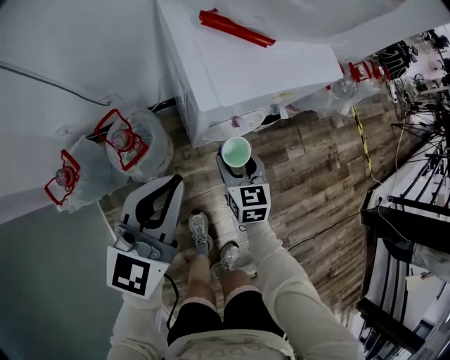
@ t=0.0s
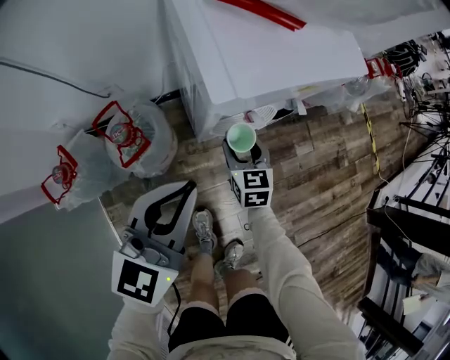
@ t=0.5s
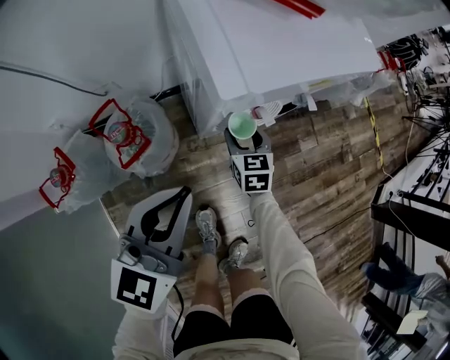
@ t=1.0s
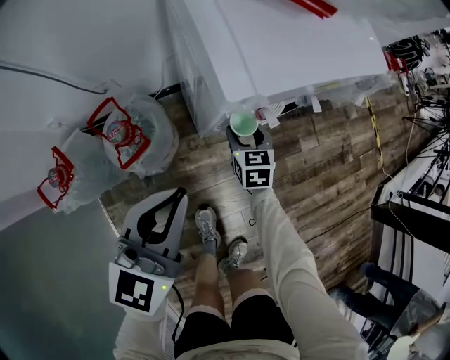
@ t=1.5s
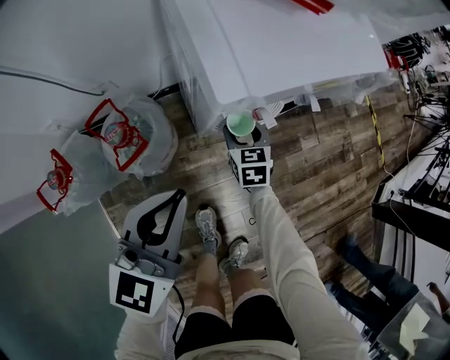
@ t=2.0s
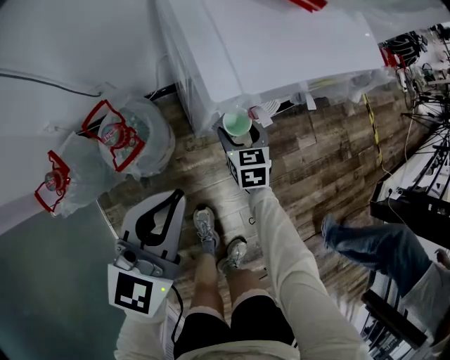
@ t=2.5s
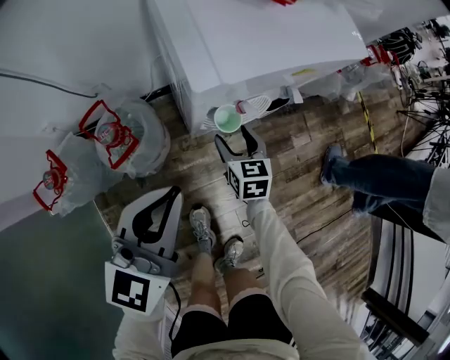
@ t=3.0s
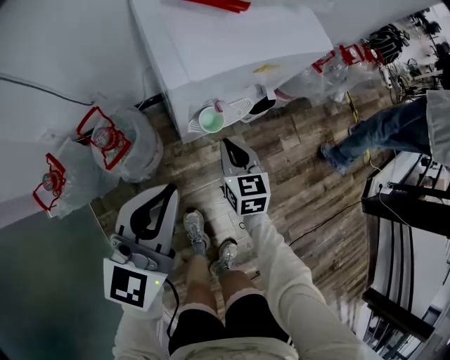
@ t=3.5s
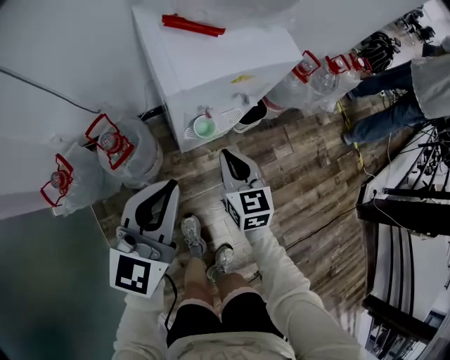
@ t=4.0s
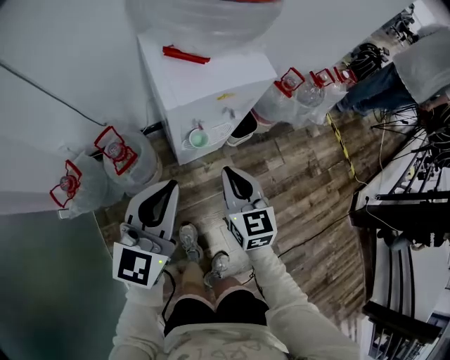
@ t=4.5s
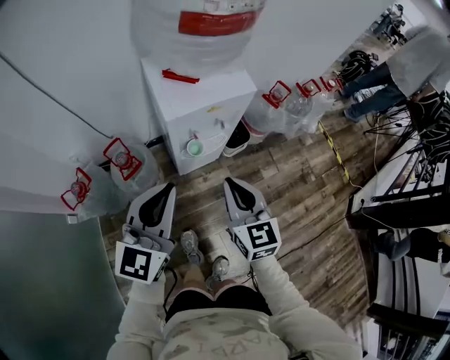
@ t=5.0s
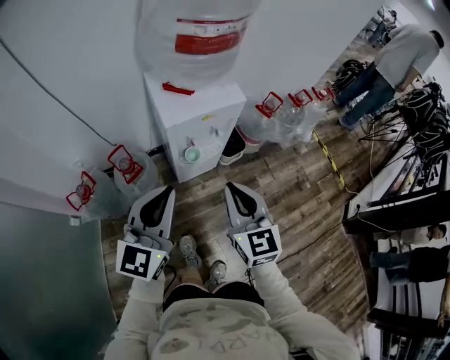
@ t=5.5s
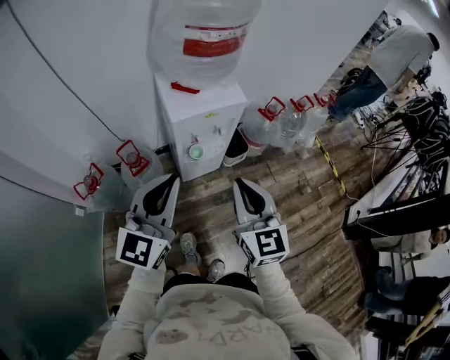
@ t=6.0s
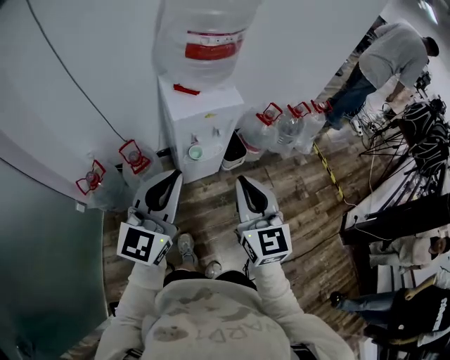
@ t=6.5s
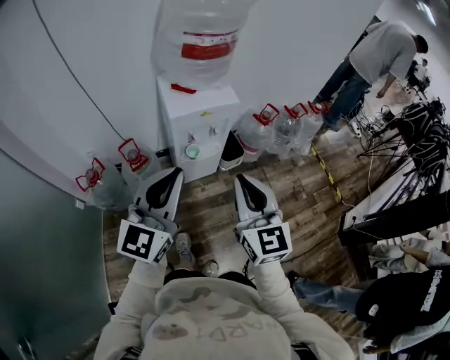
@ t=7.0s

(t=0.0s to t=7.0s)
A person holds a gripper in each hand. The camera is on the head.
t=0.0s - t=2.0s: The right gripper heads downward and forward, covering about 15 cm; the left gripper shifts about 10 cm downward.
t=2.0s - t=3.5s: The left gripper goes approximately 5 cm upward; the right gripper moves upward and backward, about 15 cm, and closes up.
t=3.5s - t=5.0s: The left gripper moves upward, some 15 cm; the right gripper heads upward and backward, covering roughly 35 cm.
t=5.0s - t=7.0s: The two grippers go roughly 20 cm upward and backward.

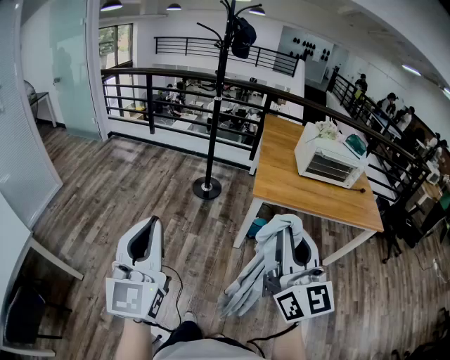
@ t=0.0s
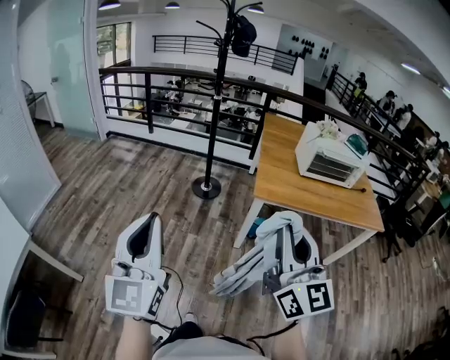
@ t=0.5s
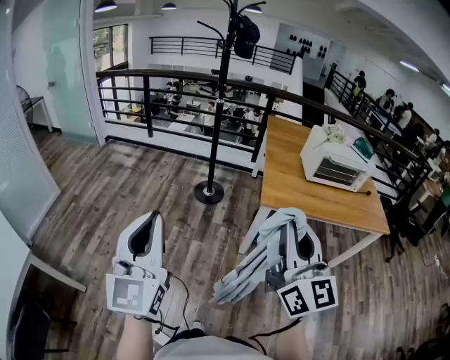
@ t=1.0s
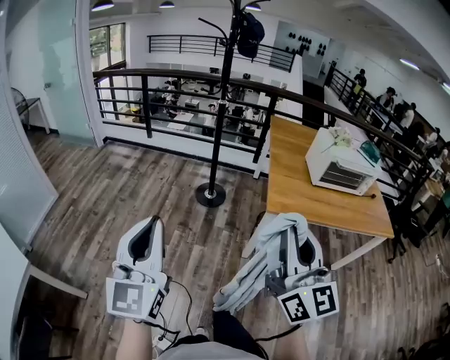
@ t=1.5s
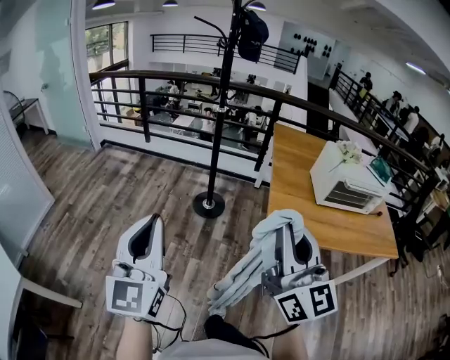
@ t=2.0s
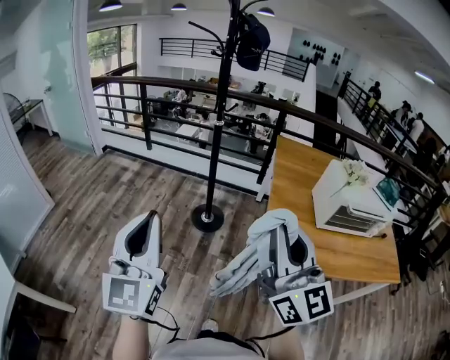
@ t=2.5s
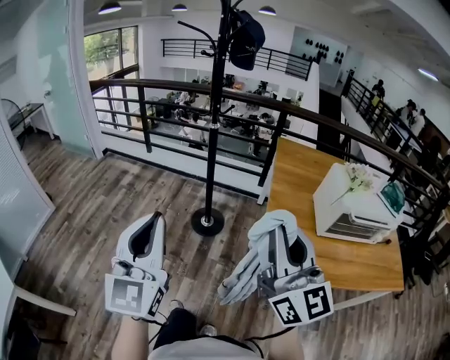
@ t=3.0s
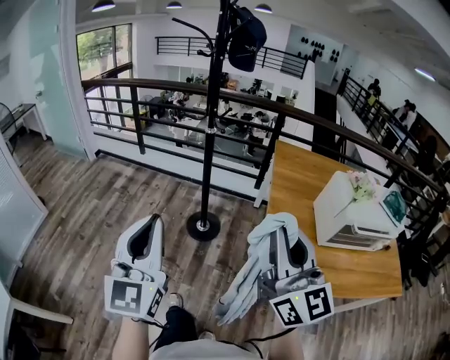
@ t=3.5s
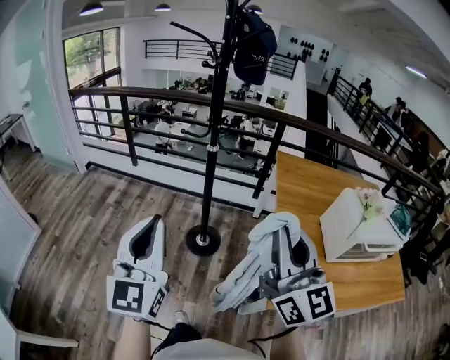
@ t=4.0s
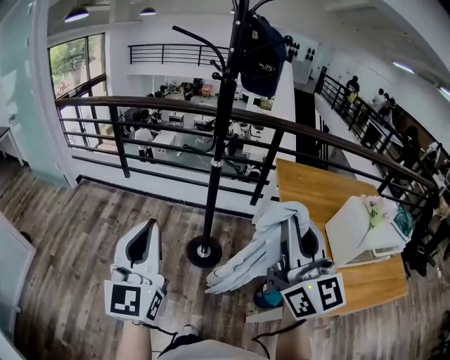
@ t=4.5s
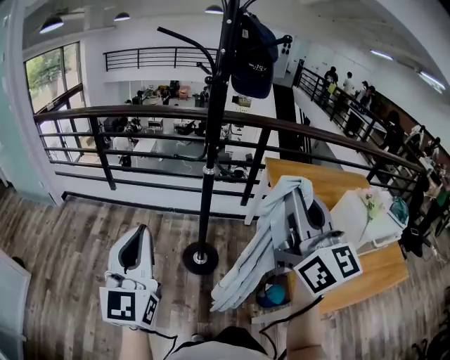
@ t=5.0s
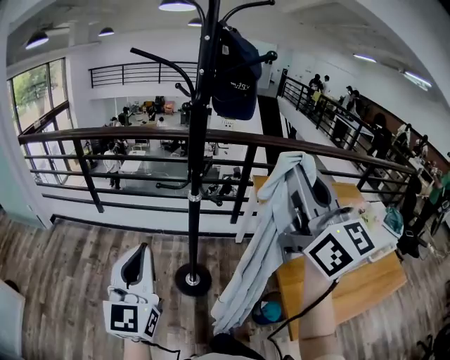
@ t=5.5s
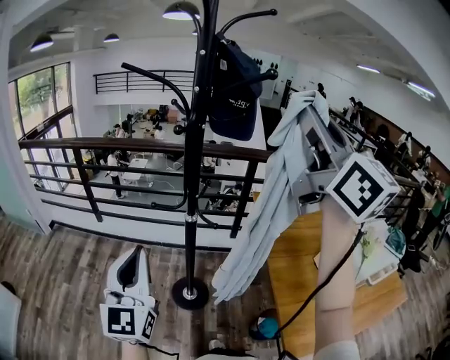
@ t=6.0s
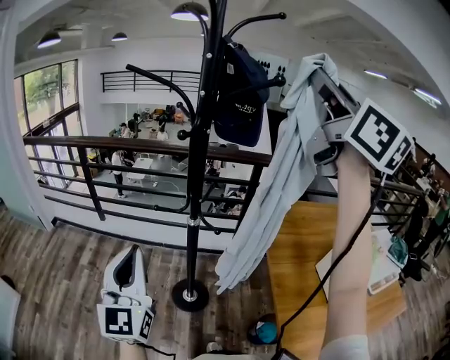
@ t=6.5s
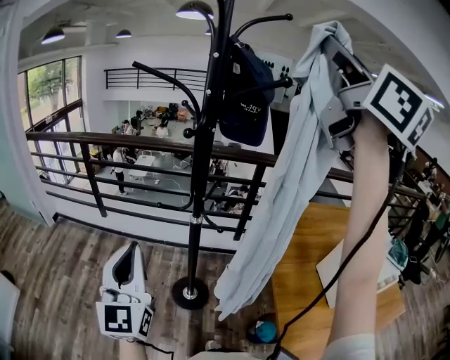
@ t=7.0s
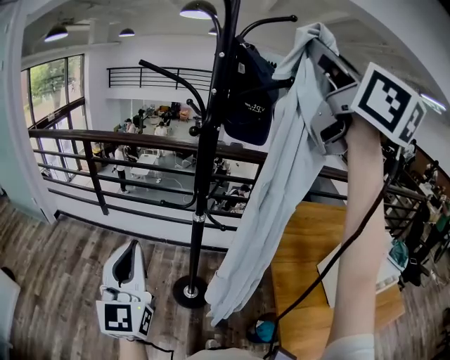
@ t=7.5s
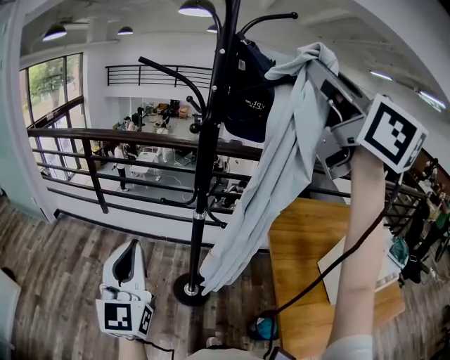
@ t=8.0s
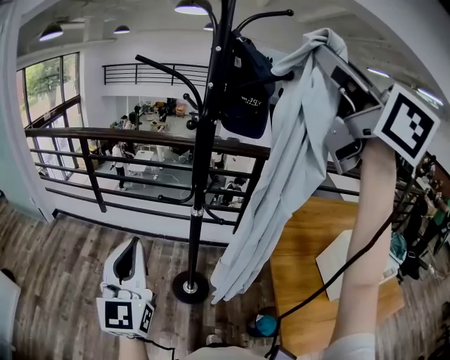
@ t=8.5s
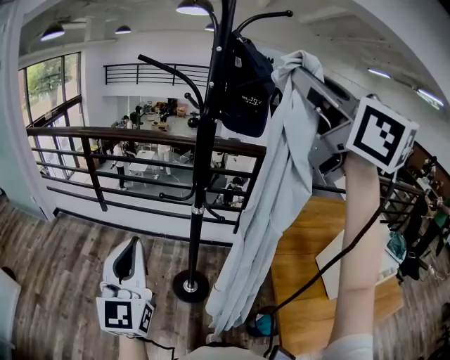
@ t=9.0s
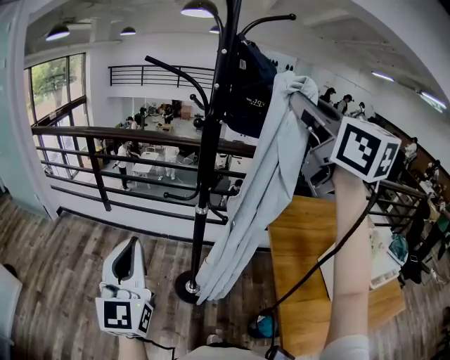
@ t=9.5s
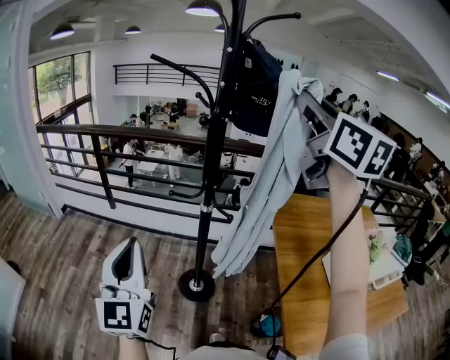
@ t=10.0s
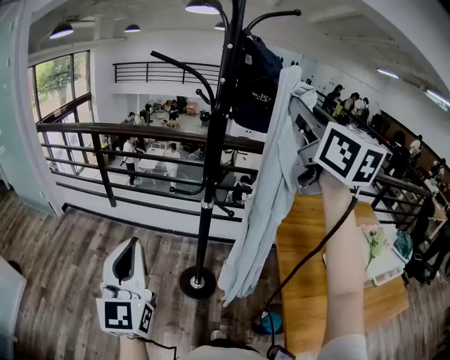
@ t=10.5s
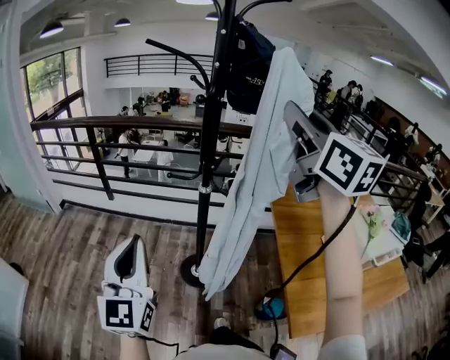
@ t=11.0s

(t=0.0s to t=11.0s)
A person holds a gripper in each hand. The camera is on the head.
t=0.0s - t=2.0s: The two grippers go approximately 25 cm forward.
t=2.0s - t=3.5s: Both grippers move forward and to the right, about 20 cm.
t=3.5s - t=5.5s: The left gripper is displaced forward and to the left by roughly 35 cm. Meanwhile the right gripper shifts roughly 35 cm forward and upward.
t=5.5s - t=7.5s: The right gripper is displaced upward and forward by approximately 25 cm. Meanwhile the left gripper changes place by roughly 5 cm.
t=7.5s - t=9.0s: The right gripper heads downward, covering about 5 cm.
t=9.0s - t=11.0s: The right gripper travels downward by some 10 cm, while the left gripper moves roughly 5 cm.

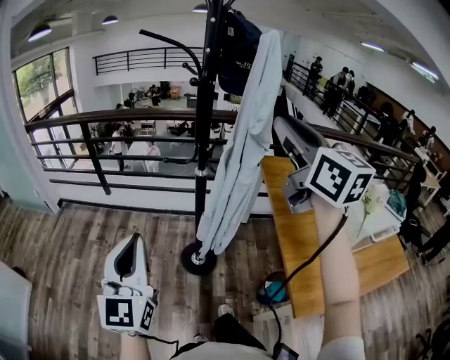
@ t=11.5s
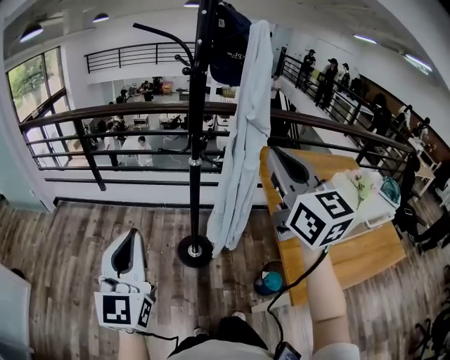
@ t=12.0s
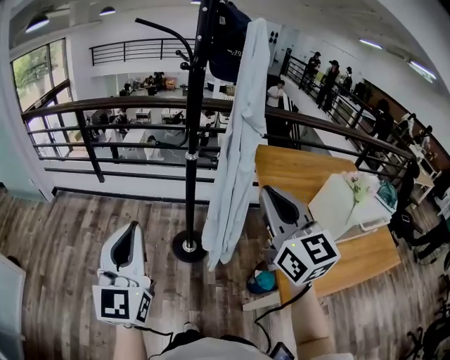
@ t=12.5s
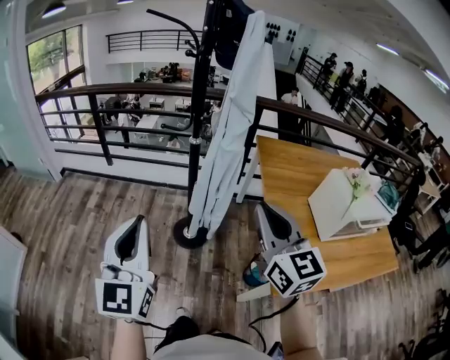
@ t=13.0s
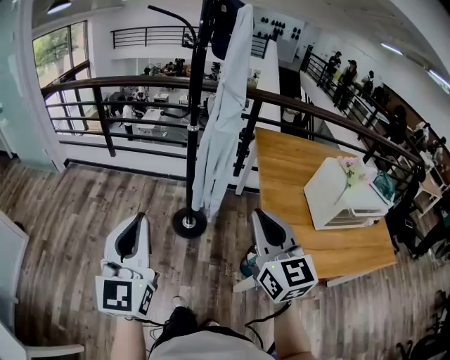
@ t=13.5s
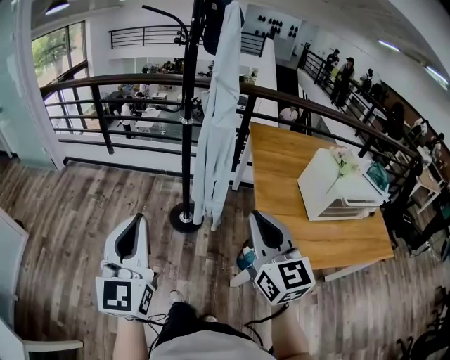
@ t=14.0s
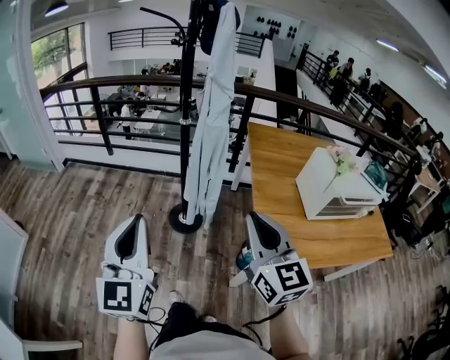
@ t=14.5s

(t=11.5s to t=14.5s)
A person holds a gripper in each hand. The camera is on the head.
t=11.5s - t=13.0s: The left gripper goes roughly 10 cm backward and to the right. Meanwhile the right gripper goes about 25 cm downward and backward.
t=13.0s - t=14.5s: Both grippers travel together backward, roughly 10 cm.

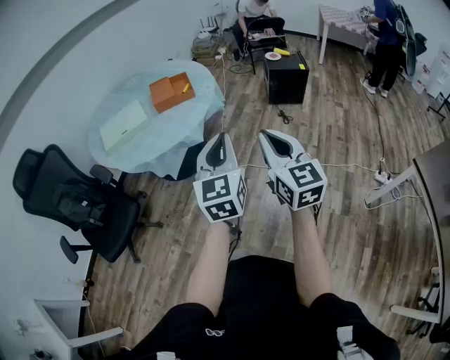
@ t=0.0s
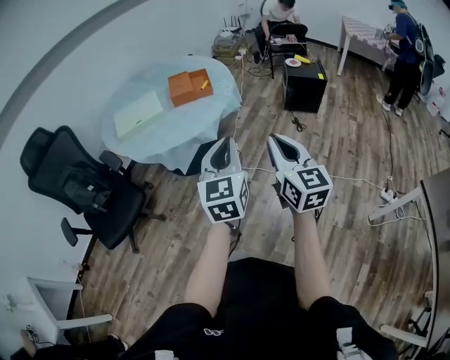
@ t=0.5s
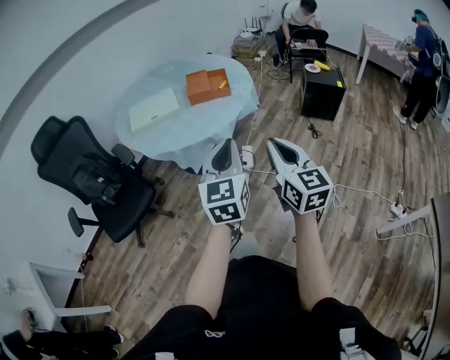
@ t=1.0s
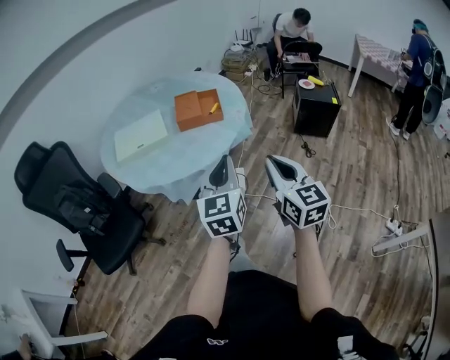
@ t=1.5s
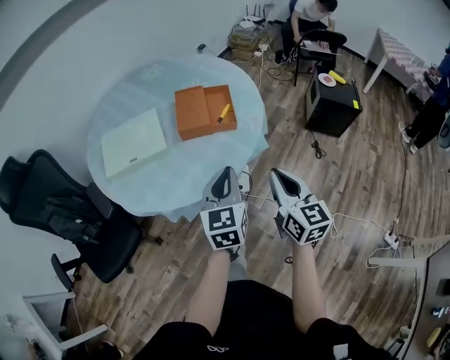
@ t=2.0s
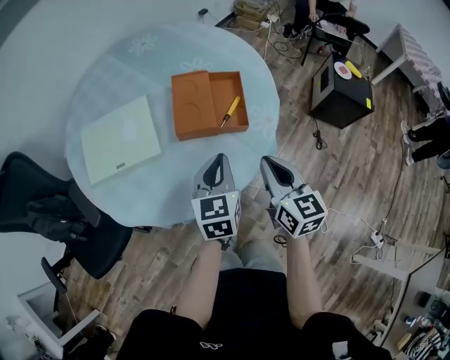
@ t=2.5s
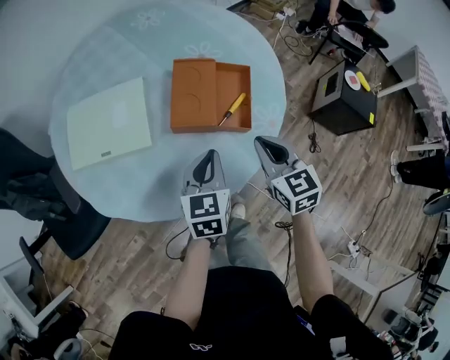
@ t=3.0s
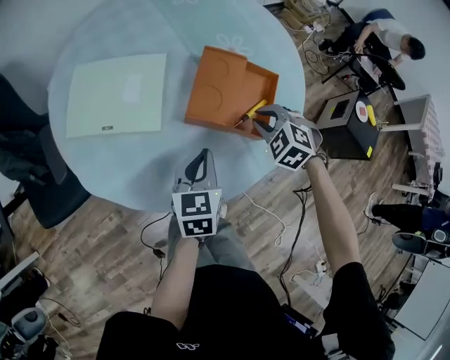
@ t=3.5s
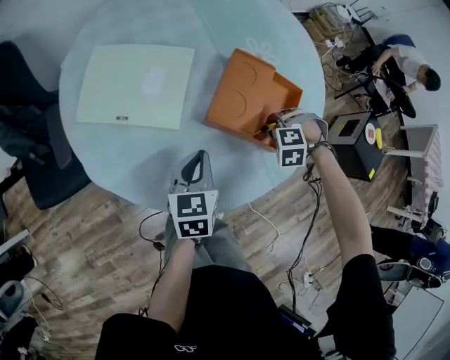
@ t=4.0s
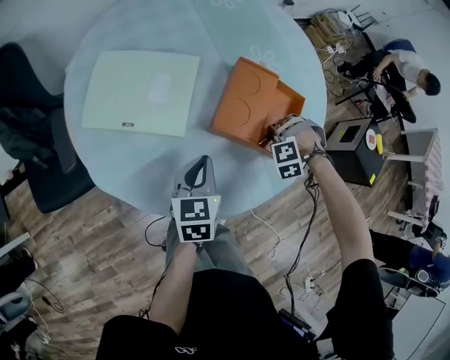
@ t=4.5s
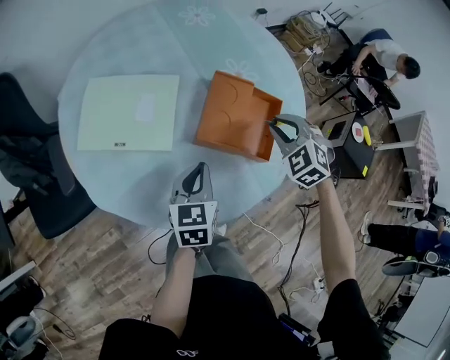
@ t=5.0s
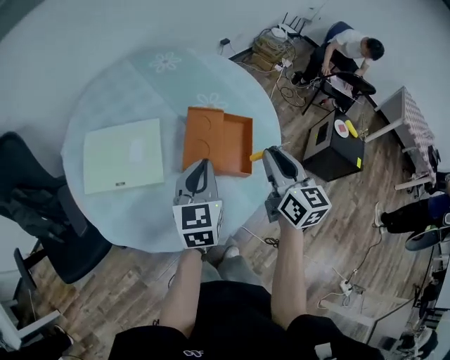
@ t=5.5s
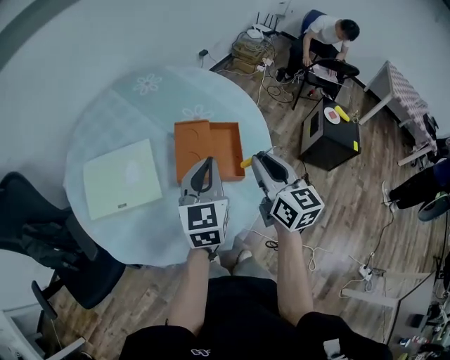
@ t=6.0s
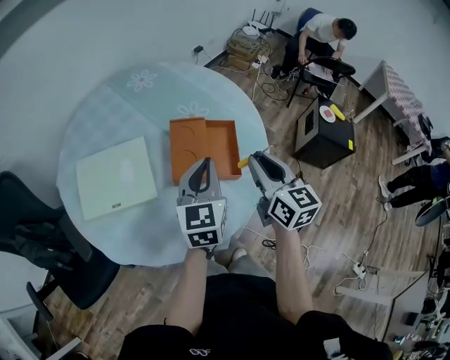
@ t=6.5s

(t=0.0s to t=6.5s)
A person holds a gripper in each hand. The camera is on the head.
t=0.0s - t=2.0s: Both grippers move forward, approximately 40 cm.
t=2.0s - t=4.5s: The left gripper shifts by about 35 cm, and rotates roughly 30 degrees. Meanwhile the right gripper shifts by about 50 cm, and rolls counterclockwise, seen from behind, by roughly 120 degrees.
t=4.5s - t=6.5s: The left gripper heads upward and to the right, covering approximately 20 cm, and turns by some 30 degrees; the right gripper goes approximately 30 cm upward, and twists about 120 degrees clockwise, seen from behind.
